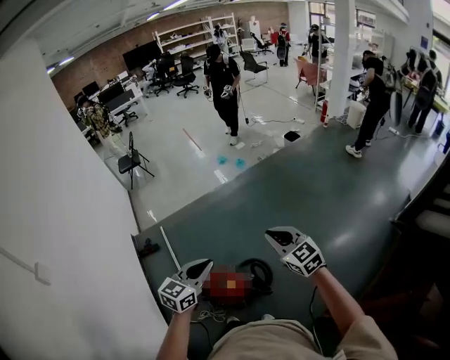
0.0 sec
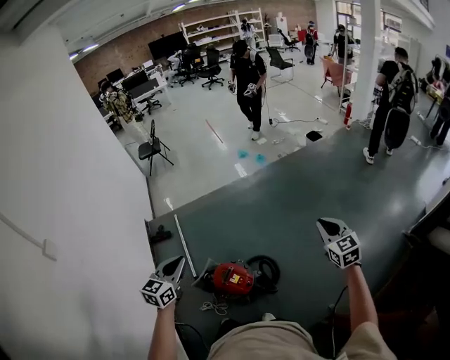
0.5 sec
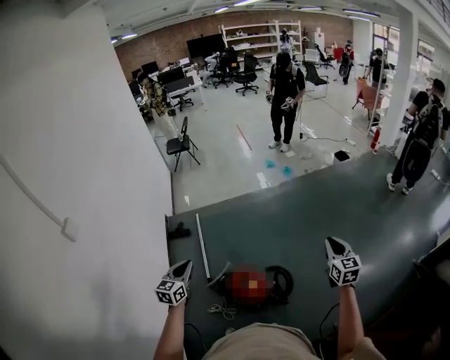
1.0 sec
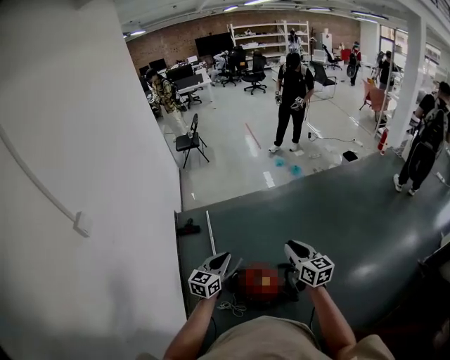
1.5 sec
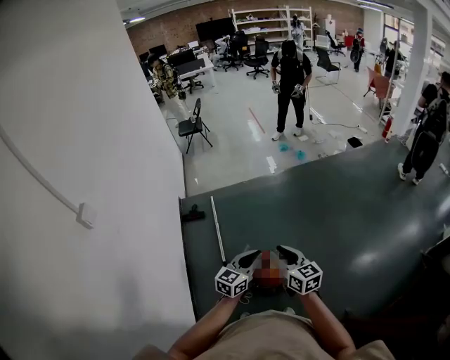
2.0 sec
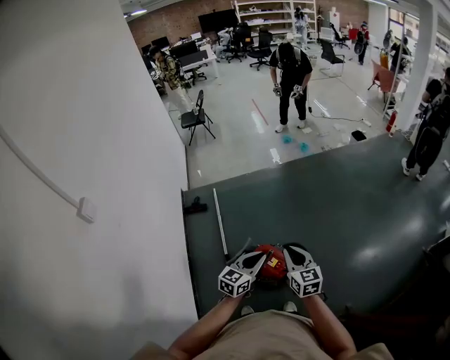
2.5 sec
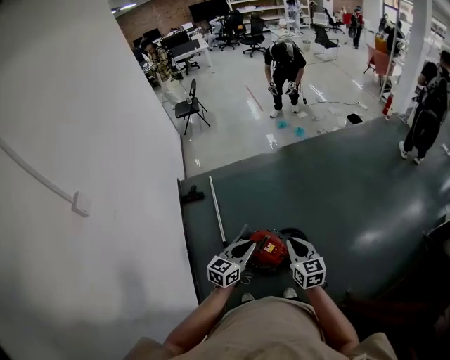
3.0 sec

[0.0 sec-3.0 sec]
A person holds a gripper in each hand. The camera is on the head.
0.0 sec to 1.5 sec: The two grippers go some 20 cm to the left. The right gripper turns by about 30 degrees. The left gripper turns by approximately 20 degrees.
1.5 sec to 3.0 sec: The left gripper travels to the right and backward by approximately 10 cm, while the right gripper moves backward and downward, approximately 10 cm, and moves approximately 10 cm to the left and comes back.

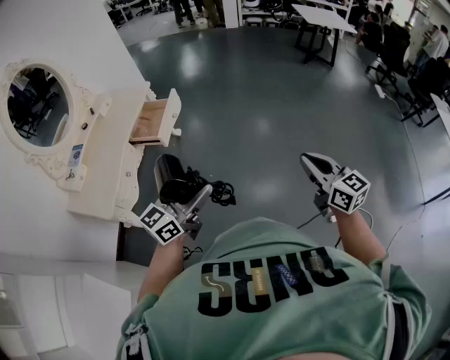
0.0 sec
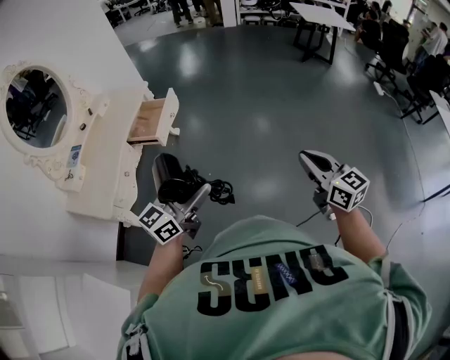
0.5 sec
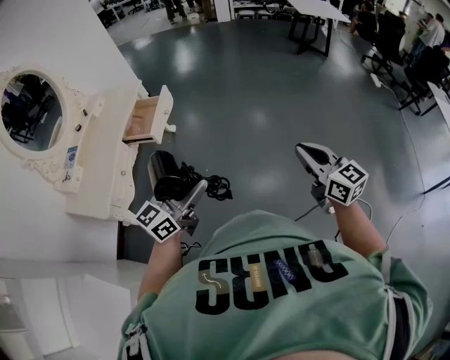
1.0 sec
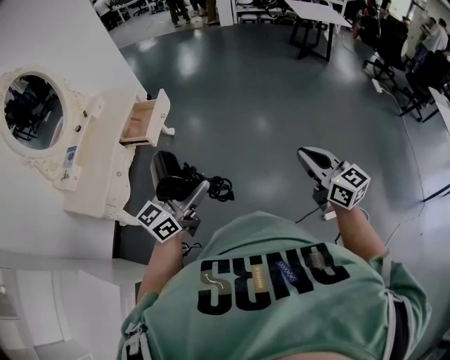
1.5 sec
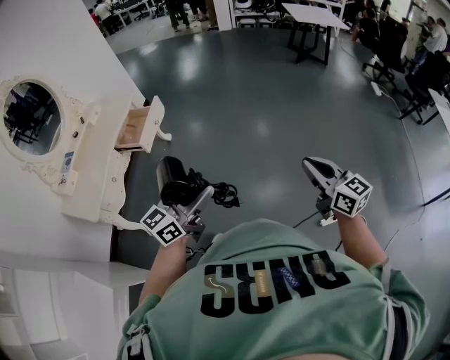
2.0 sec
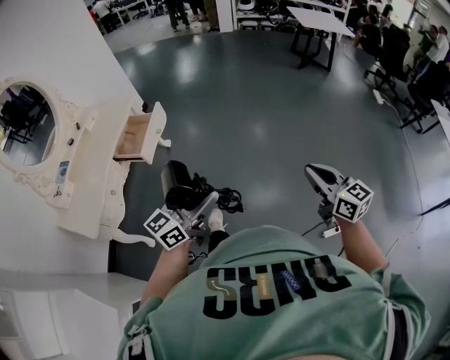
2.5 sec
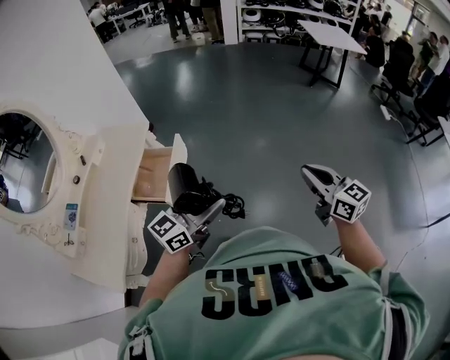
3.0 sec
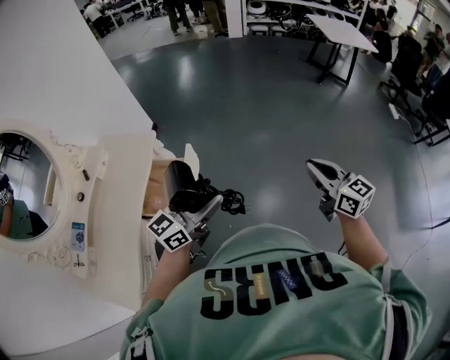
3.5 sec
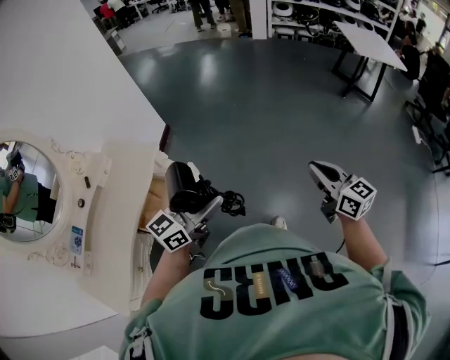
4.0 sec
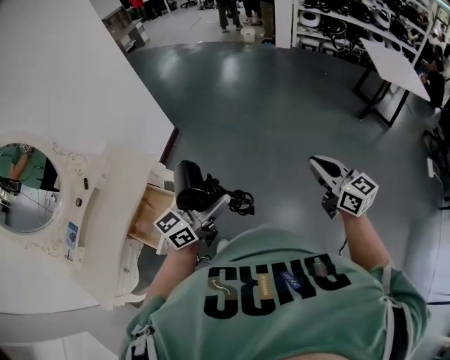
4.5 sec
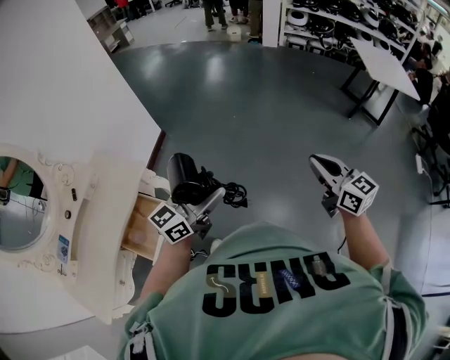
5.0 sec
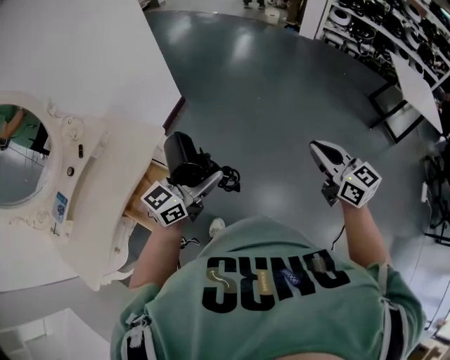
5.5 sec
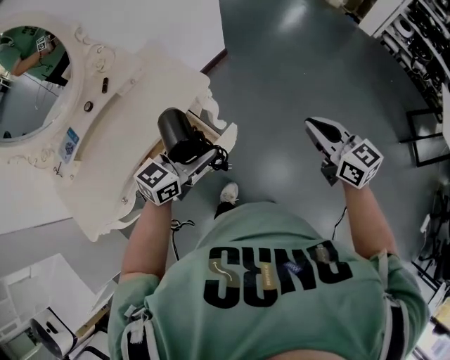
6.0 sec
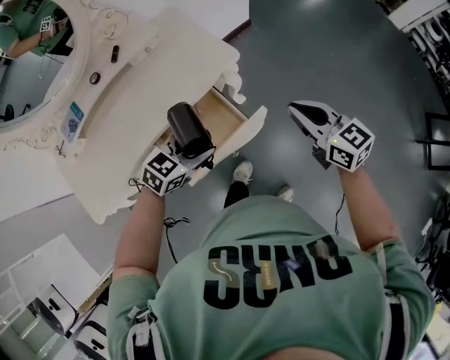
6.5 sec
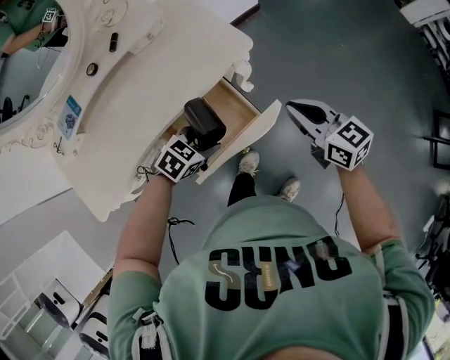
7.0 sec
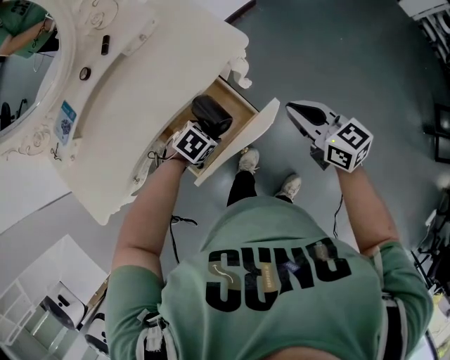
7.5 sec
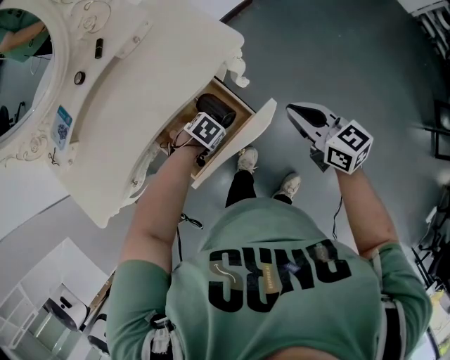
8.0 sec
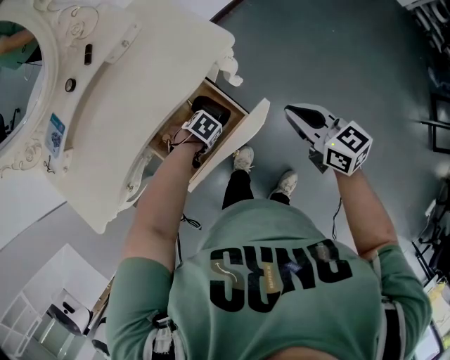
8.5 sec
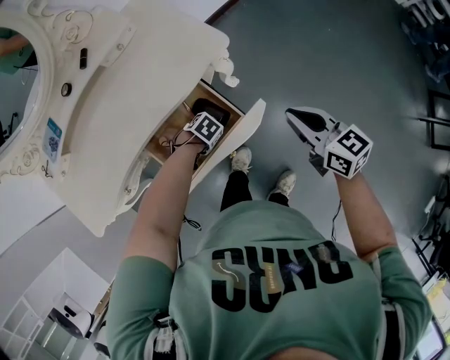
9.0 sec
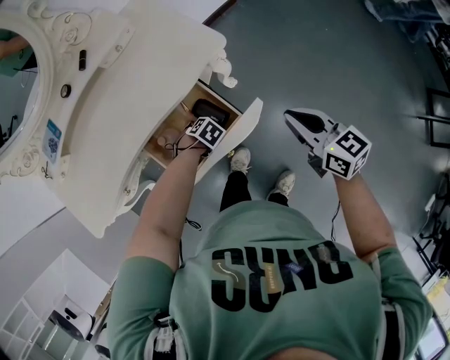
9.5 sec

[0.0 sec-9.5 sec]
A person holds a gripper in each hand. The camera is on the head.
0.0 sec to 2.0 sec: Both grippers travel together to the right, some 15 cm.
2.0 sec to 4.0 sec: The pair of grippers is taken forward and to the left, some 70 cm.
4.0 sec to 5.5 sec: The grippers both shift forward by roughly 20 cm.
5.5 sec to 7.5 sec: The left gripper travels downward by approximately 35 cm, and angles its fingers downward, by some 70 degrees, while the right gripper ends up about 50 cm from where it was, and changes its angle by approximately 40 degrees.
7.5 sec to 9.5 sec: The left gripper is displaced downward by some 15 cm.

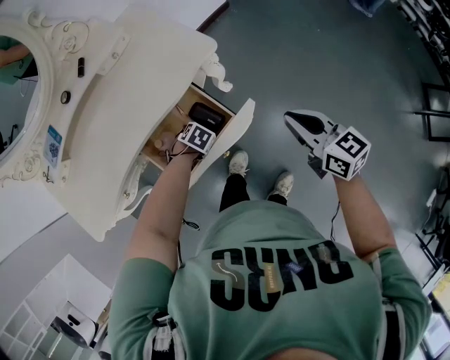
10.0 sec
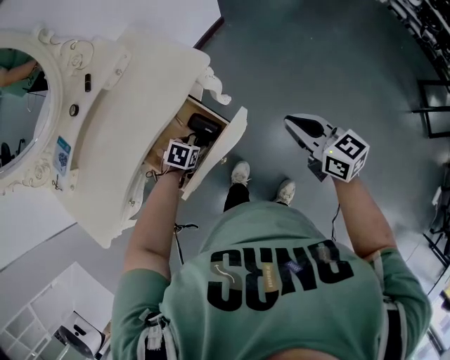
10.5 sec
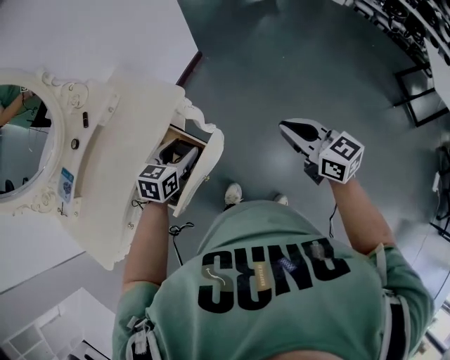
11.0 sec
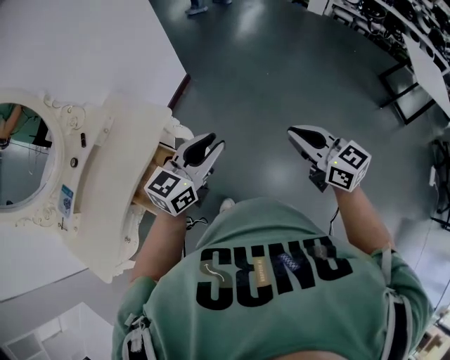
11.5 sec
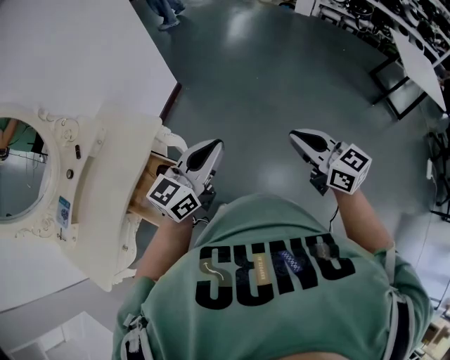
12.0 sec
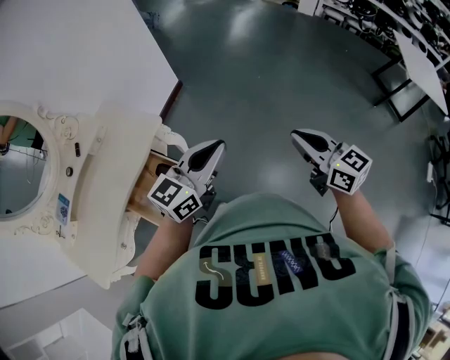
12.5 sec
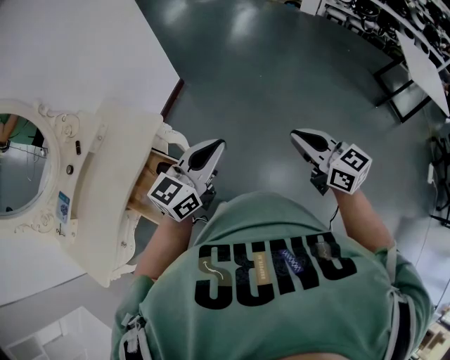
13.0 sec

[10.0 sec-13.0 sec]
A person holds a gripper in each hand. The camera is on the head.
10.0 sec to 11.5 sec: The left gripper goes roughly 50 cm upward, tilts its fingers roughly 70 degrees upward, and closes; the right gripper moves roughly 30 cm, and rotates roughly 20 degrees.
11.5 sec to 13.0 sec: The left gripper shifts by roughly 5 cm, and closes its fingers.

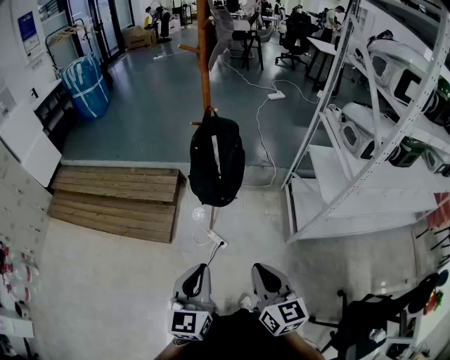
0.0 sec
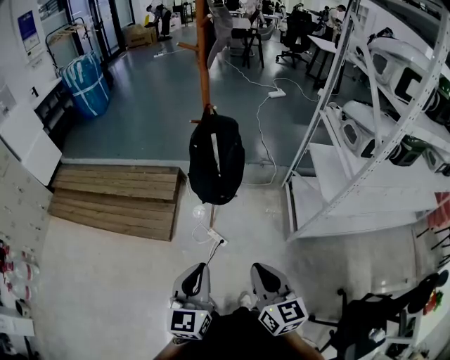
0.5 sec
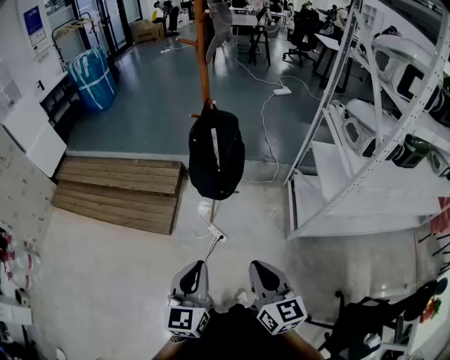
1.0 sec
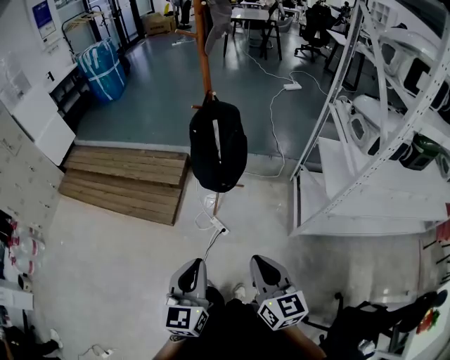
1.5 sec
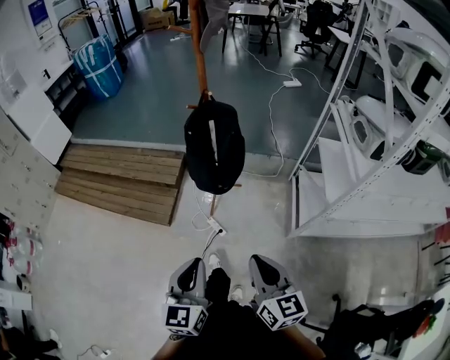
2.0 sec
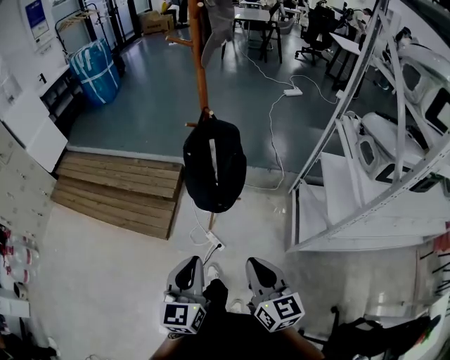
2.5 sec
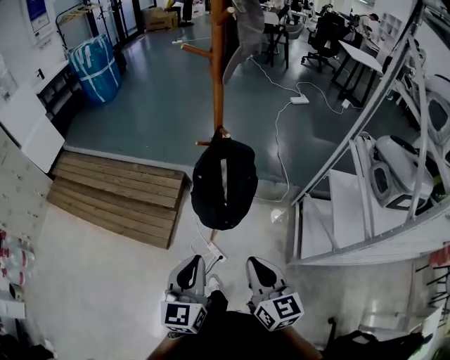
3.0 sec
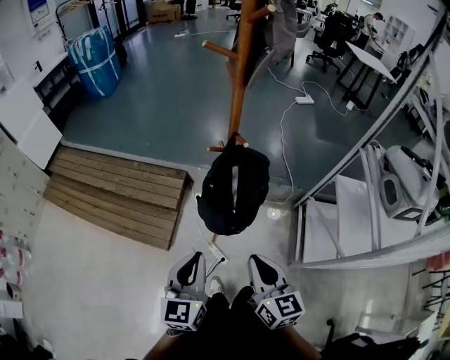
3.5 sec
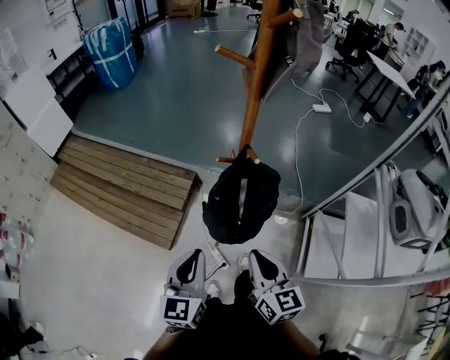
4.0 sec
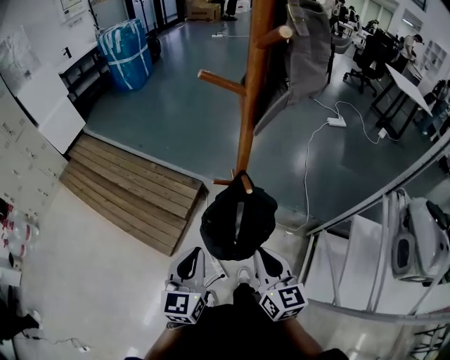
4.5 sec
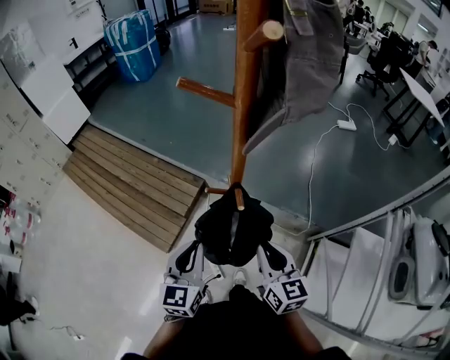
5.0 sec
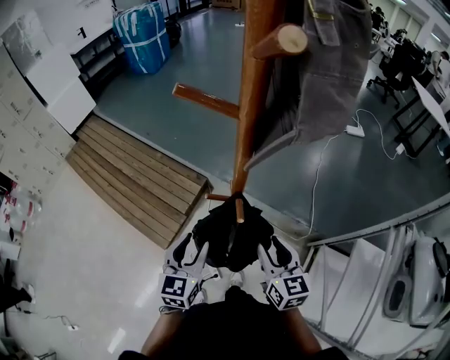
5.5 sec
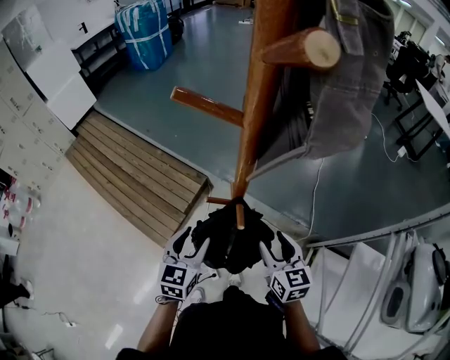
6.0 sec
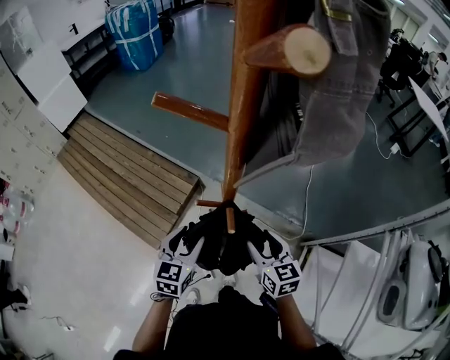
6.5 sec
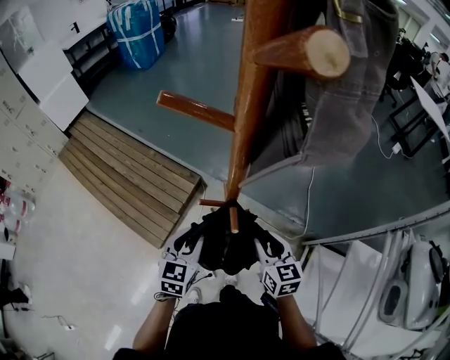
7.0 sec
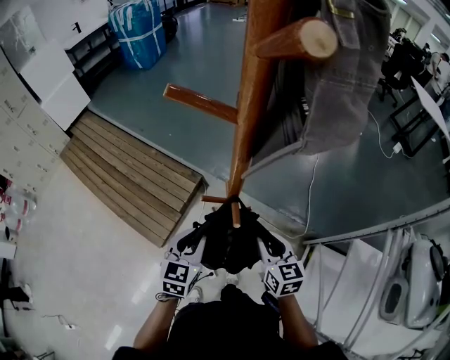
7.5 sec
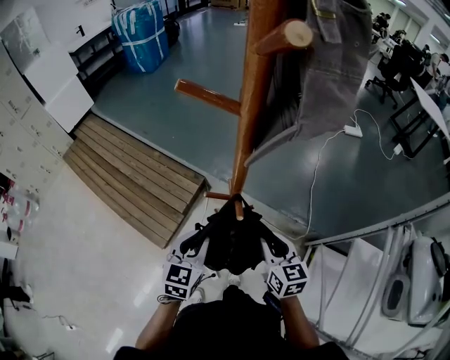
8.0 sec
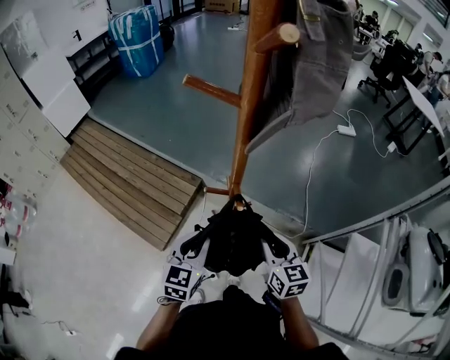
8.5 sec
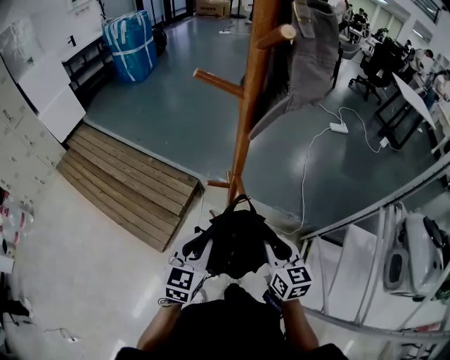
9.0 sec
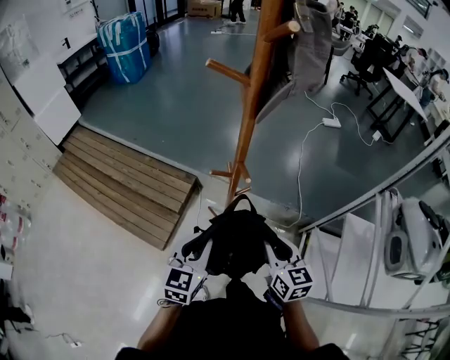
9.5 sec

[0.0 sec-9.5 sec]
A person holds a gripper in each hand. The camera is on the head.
0.0 sec to 2.0 sec: Both grippers travel together to the right, some 10 cm.
2.0 sec to 4.0 sec: The grippers both shift forward by approximately 35 cm.
4.0 sec to 5.5 sec: Both grippers move forward and to the right, about 20 cm. The left gripper opens its fingers; the right gripper opens its fingers.
5.5 sec to 7.5 sec: The right gripper moves about 5 cm. The left gripper shifts by approximately 5 cm, and closes its fingers.
7.5 sec to 9.5 sec: The grippers both shift backward and upward by some 15 cm.

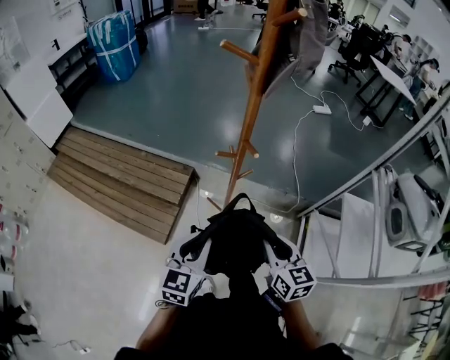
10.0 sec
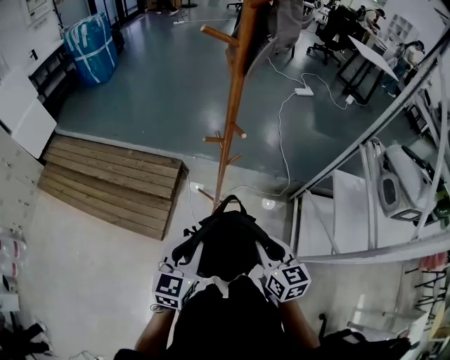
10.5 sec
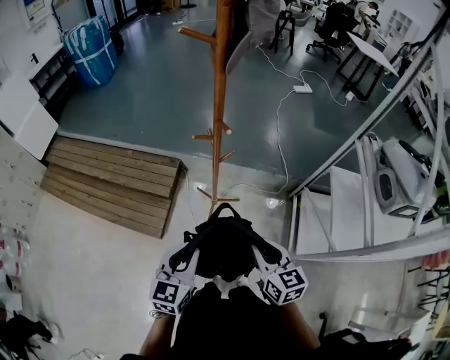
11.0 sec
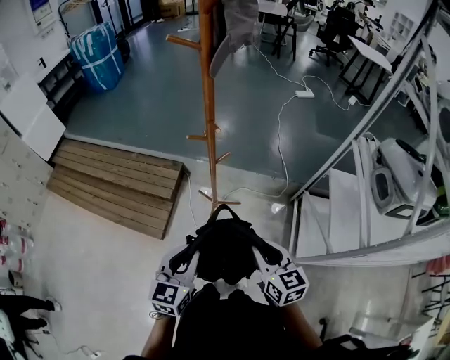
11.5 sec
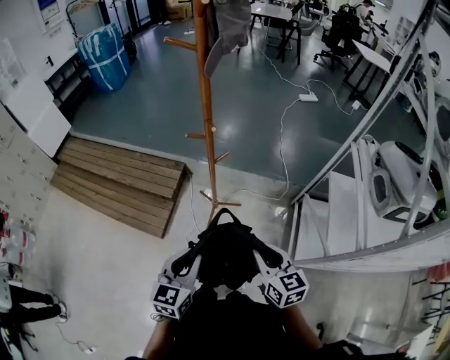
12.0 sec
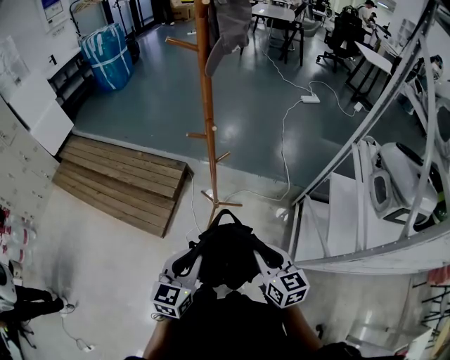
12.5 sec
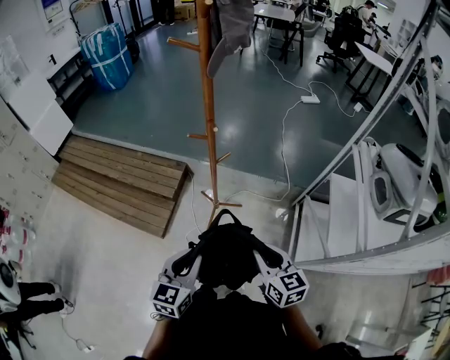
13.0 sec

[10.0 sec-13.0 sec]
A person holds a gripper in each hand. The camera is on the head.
10.0 sec to 11.5 sec: Both grippers travel together backward and to the right, about 15 cm.
11.5 sec to 13.0 sec: The grippers move only a little.
